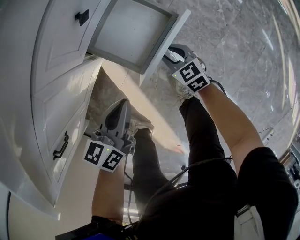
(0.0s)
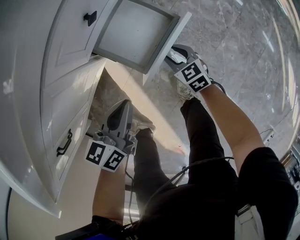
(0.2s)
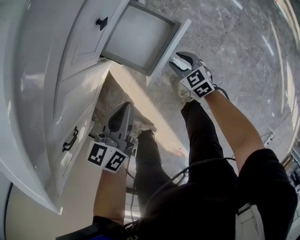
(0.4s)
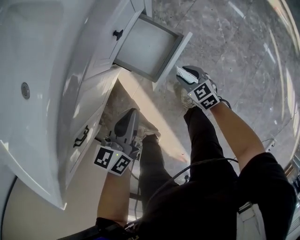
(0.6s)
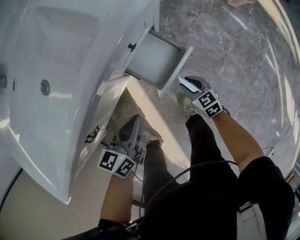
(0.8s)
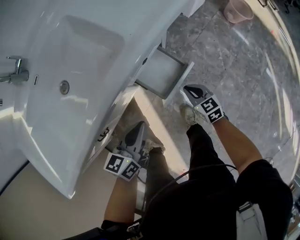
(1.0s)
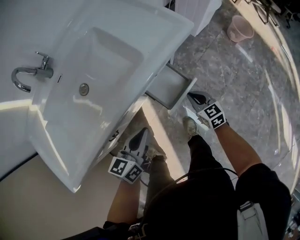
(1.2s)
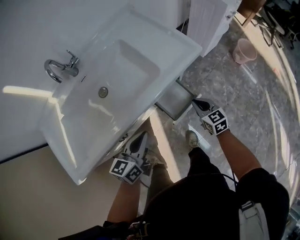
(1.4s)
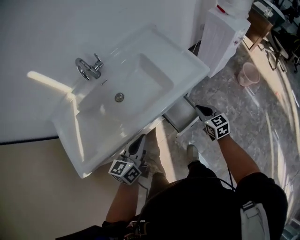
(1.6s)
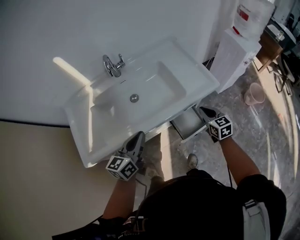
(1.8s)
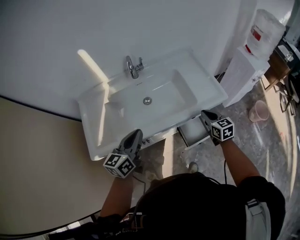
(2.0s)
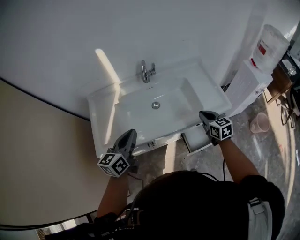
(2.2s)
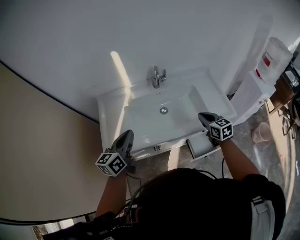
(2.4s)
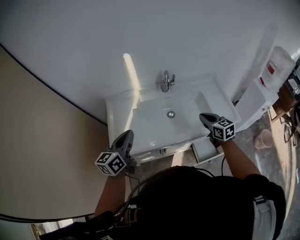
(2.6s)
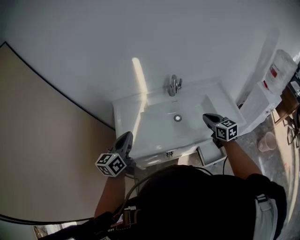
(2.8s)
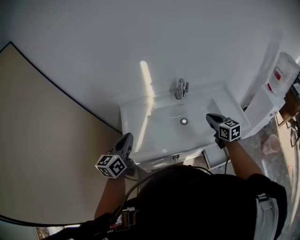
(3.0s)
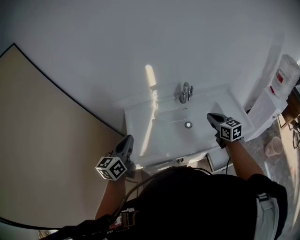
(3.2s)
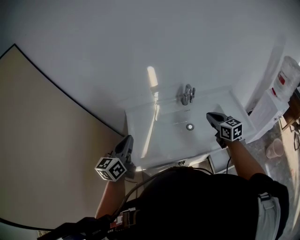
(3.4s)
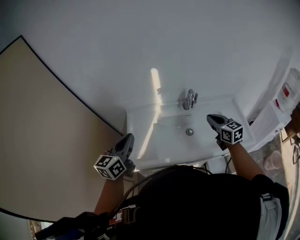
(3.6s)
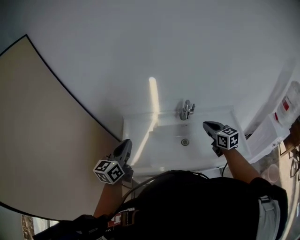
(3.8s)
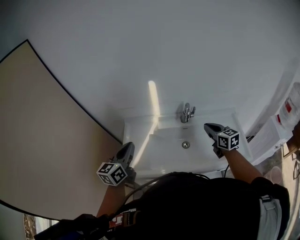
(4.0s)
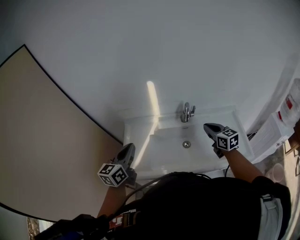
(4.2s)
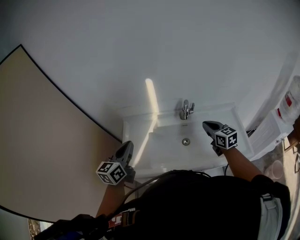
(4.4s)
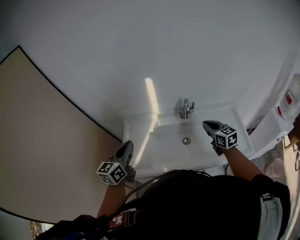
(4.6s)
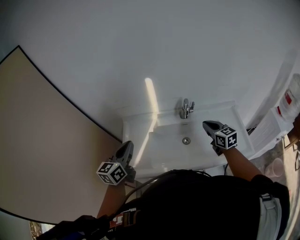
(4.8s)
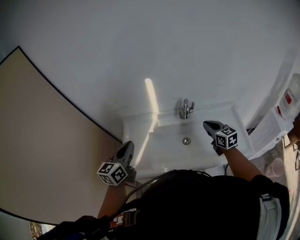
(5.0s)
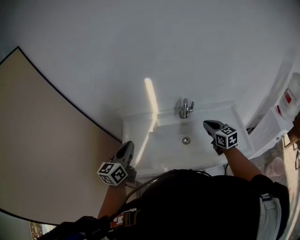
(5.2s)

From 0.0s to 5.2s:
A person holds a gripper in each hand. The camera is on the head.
From 0.0s to 1.8s: Both grippers move upward, some 60 cm. The right gripper closes its fingers, while the left gripper swivels about 40 degrees.
From 1.8s to 3.4s: The two grippers go some 40 cm to the left and upward. The right gripper turns by approximately 20 degrees. Meanwhile the left gripper swivels approximately 20 degrees.
From 3.4s to 5.2s: The left gripper travels to the right by some 5 cm. The right gripper shifts roughly 10 cm forward and to the right.

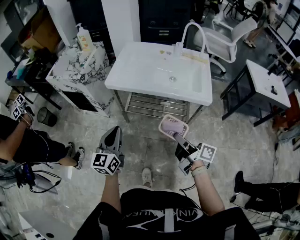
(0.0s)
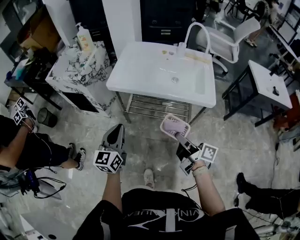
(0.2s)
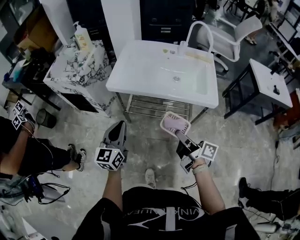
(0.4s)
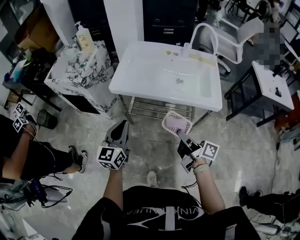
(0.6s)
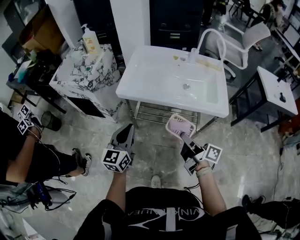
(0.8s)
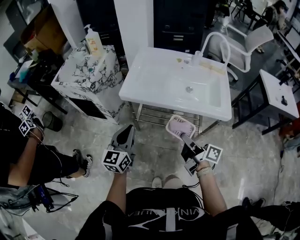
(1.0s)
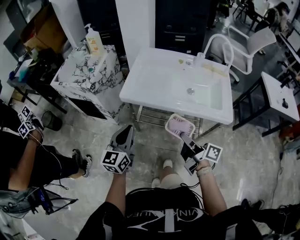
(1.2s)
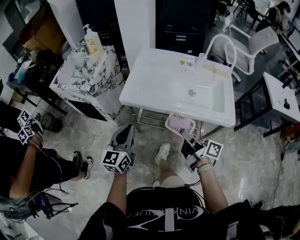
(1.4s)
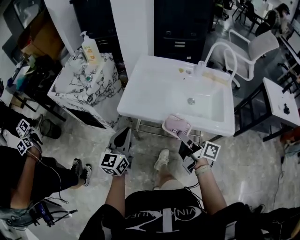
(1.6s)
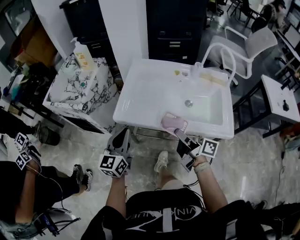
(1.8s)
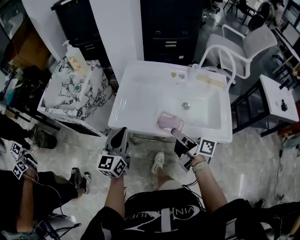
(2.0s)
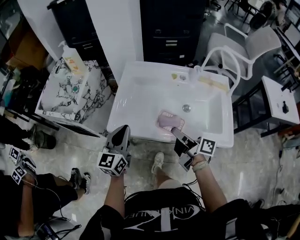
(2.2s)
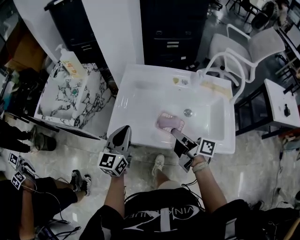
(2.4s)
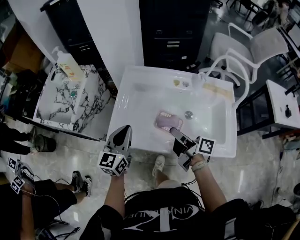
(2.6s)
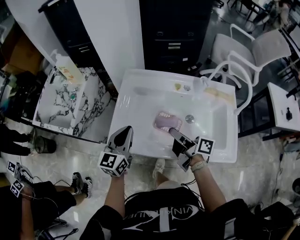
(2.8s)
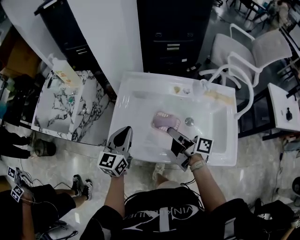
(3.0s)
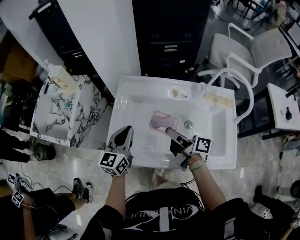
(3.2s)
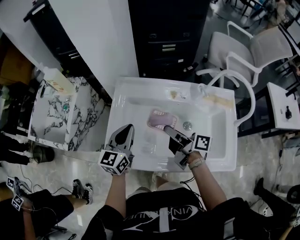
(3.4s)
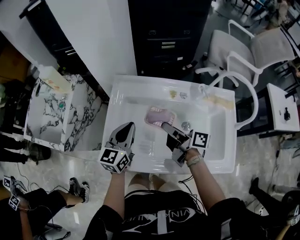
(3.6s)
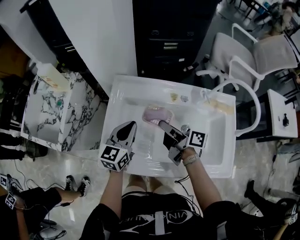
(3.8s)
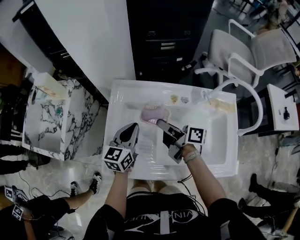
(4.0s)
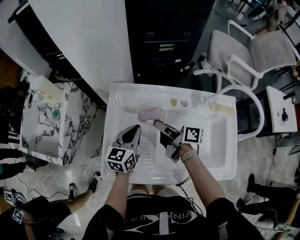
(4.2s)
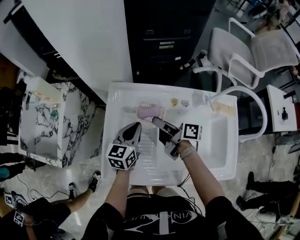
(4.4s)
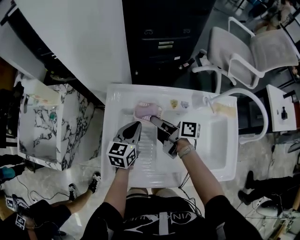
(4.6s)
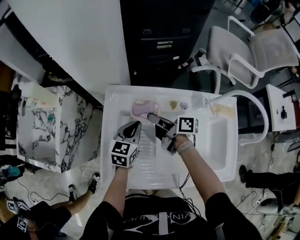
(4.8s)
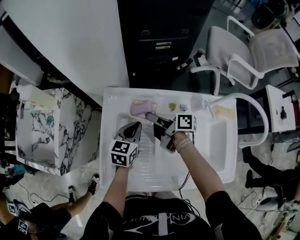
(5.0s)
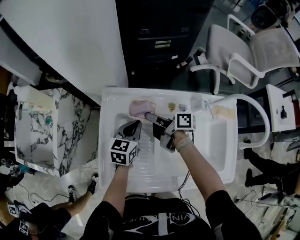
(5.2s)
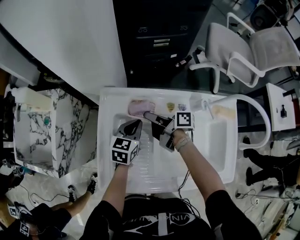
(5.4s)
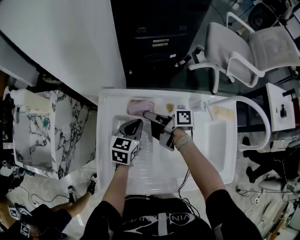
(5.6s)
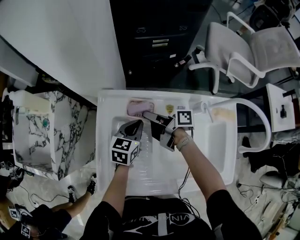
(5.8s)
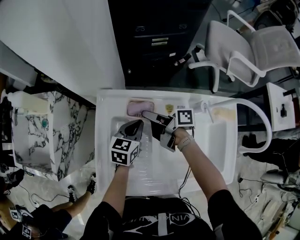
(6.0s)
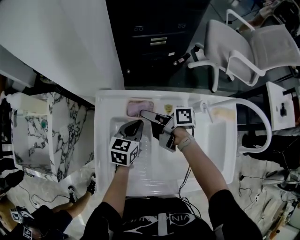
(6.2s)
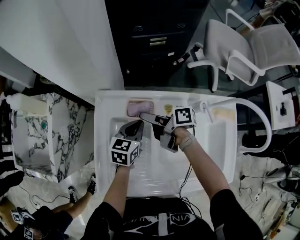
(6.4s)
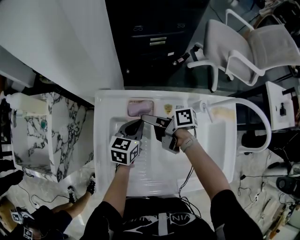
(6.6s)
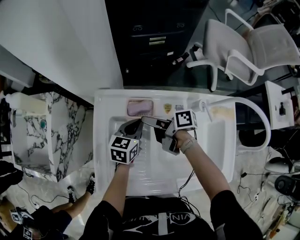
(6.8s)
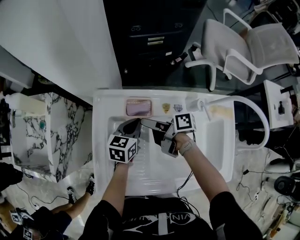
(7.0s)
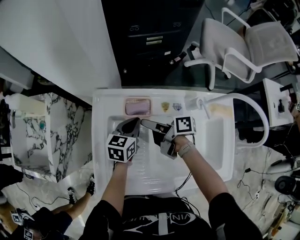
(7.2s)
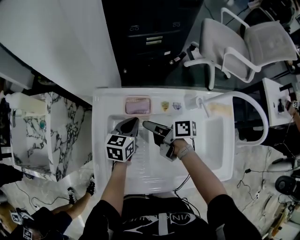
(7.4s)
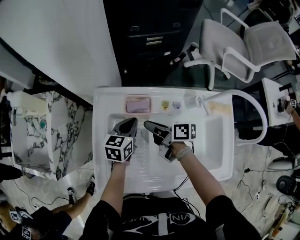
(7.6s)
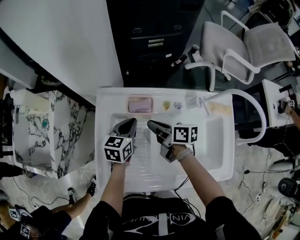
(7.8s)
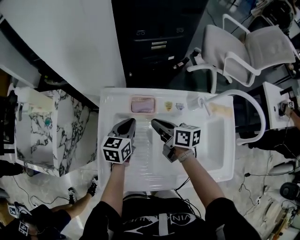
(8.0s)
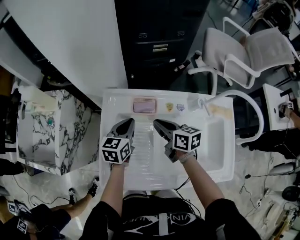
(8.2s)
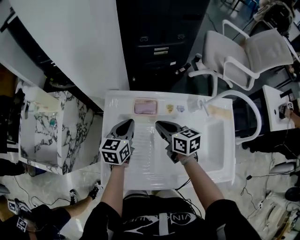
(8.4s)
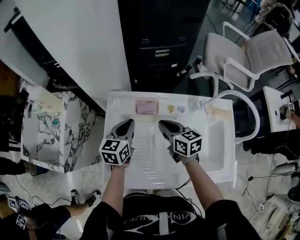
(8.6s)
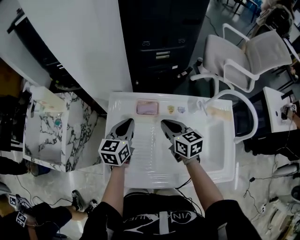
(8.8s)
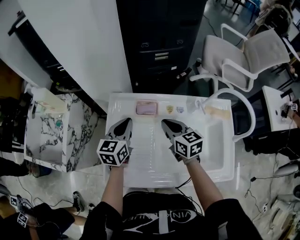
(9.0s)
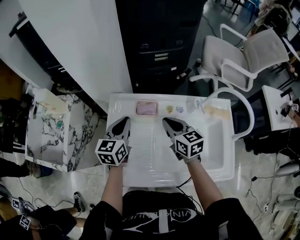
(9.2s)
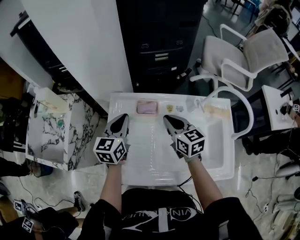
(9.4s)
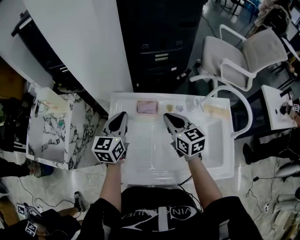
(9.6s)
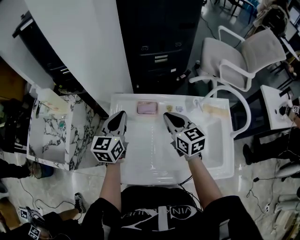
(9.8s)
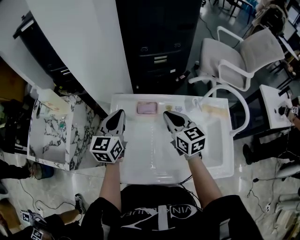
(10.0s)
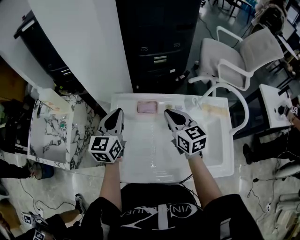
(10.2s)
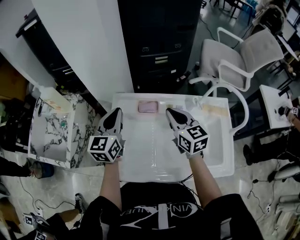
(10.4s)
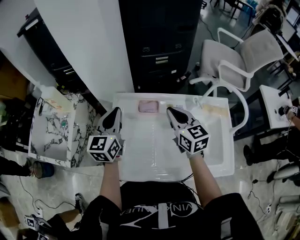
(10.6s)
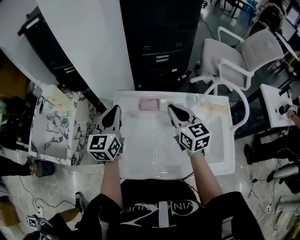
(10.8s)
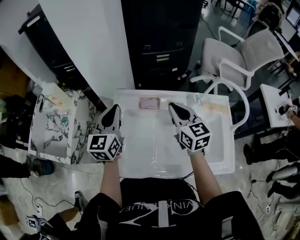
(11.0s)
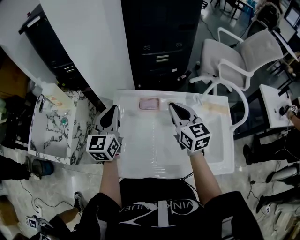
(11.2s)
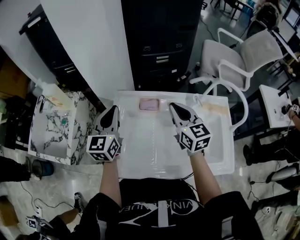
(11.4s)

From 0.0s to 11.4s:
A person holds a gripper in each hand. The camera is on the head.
From 0.0s to 1.4s: Both grippers travel together forward, approximately 15 cm.
From 1.4s to 2.8s: The grippers both shift forward by roughly 25 cm.
From 2.8s to 4.2s: The right gripper heads forward, covering roughly 15 cm. Meanwhile the left gripper goes roughly 20 cm forward, to the right and downward.
From 4.2s to 5.6s: The right gripper goes about 10 cm forward, and rotates approximately 20 degrees; the left gripper is displaced forward, to the right and downward by some 10 cm.
From 5.6s to 7.2s: The right gripper opens.
From 7.2s to 8.6s: The left gripper goes about 10 cm upward and to the left; the right gripper is displaced upward by approximately 5 cm, rotates around the line of its fingers by approximately 50 degrees, counterclockwise from behind, and closes up.
From 8.6s to 10.0s: The grippers both shift upward by roughly 10 cm.
From 10.0s to 11.4s: The left gripper shifts by about 5 cm.

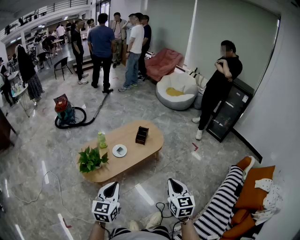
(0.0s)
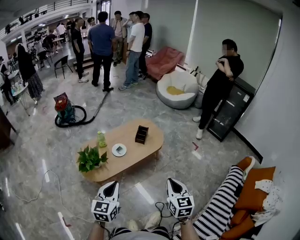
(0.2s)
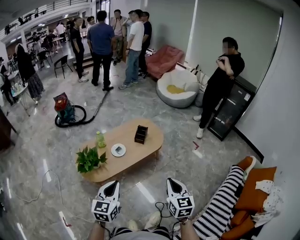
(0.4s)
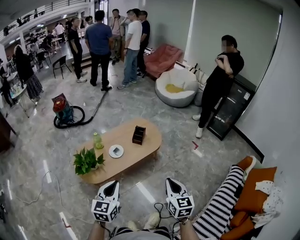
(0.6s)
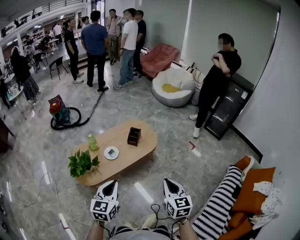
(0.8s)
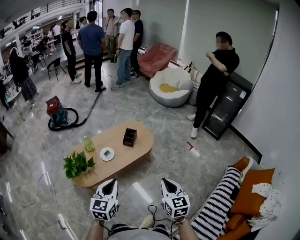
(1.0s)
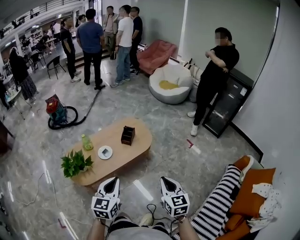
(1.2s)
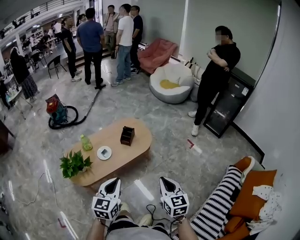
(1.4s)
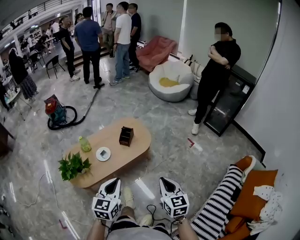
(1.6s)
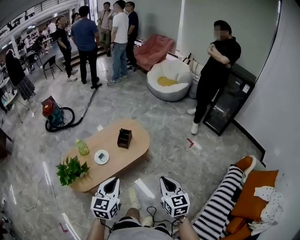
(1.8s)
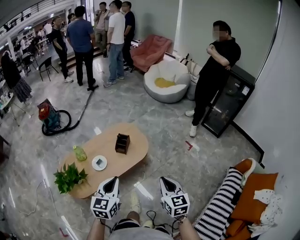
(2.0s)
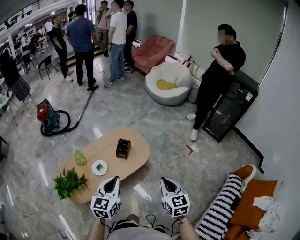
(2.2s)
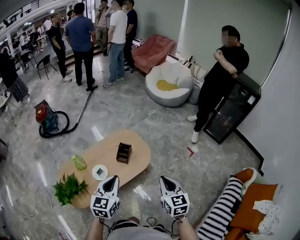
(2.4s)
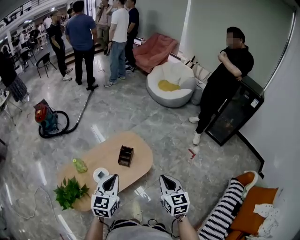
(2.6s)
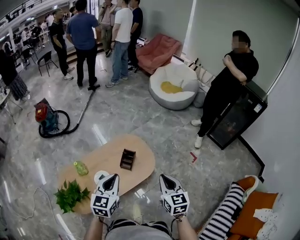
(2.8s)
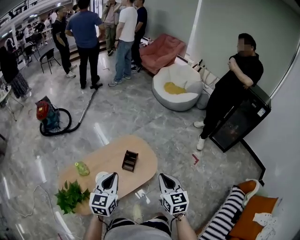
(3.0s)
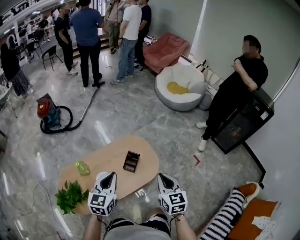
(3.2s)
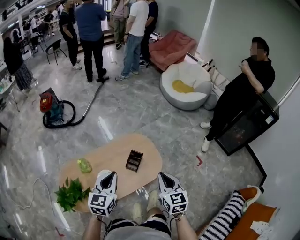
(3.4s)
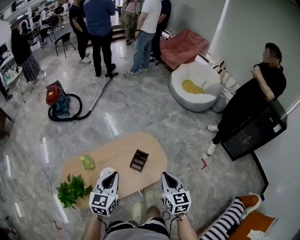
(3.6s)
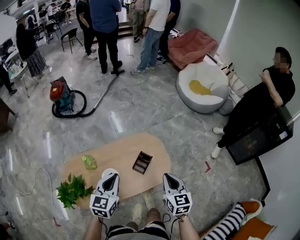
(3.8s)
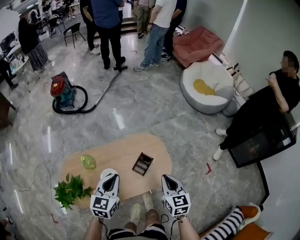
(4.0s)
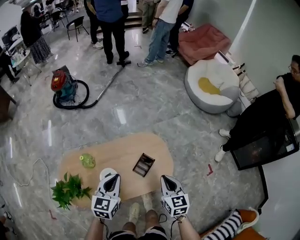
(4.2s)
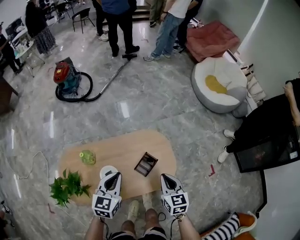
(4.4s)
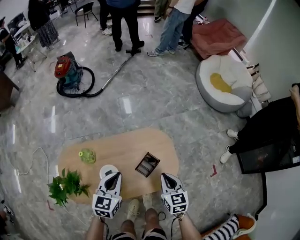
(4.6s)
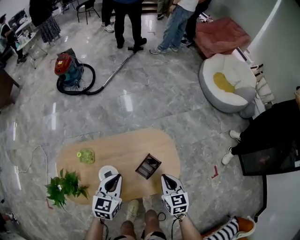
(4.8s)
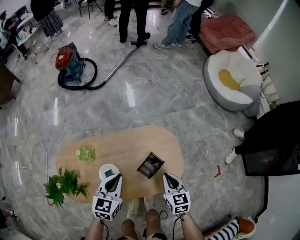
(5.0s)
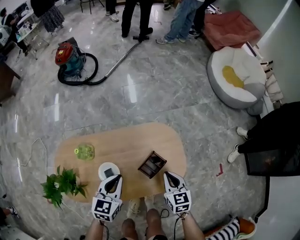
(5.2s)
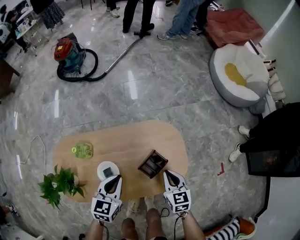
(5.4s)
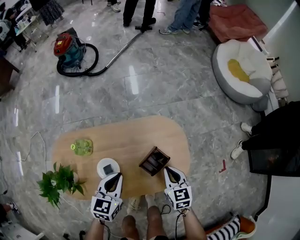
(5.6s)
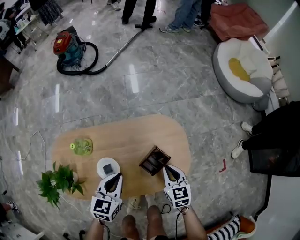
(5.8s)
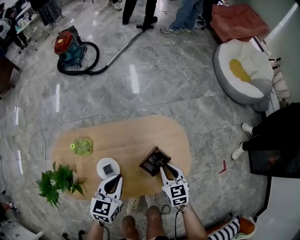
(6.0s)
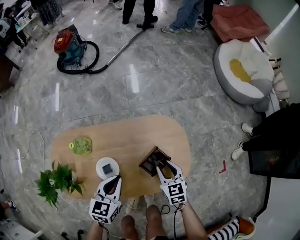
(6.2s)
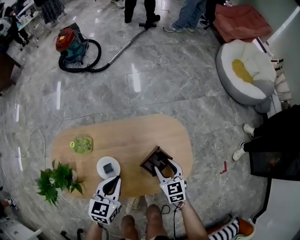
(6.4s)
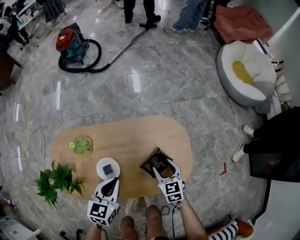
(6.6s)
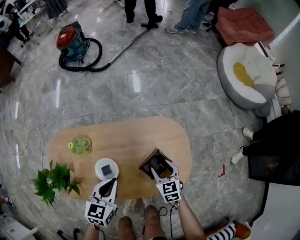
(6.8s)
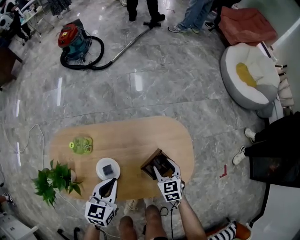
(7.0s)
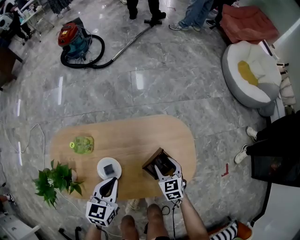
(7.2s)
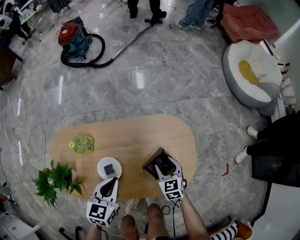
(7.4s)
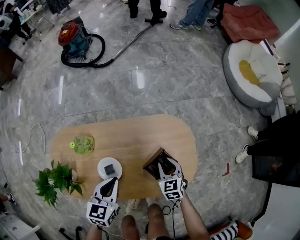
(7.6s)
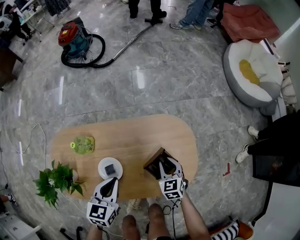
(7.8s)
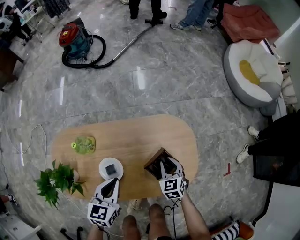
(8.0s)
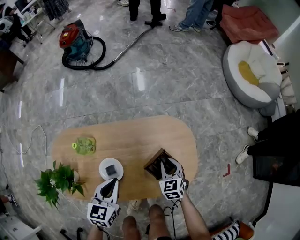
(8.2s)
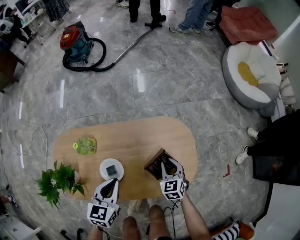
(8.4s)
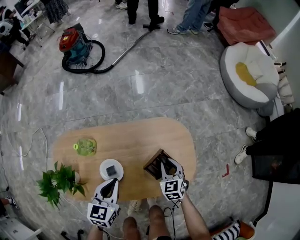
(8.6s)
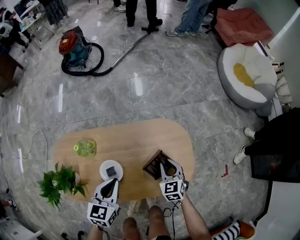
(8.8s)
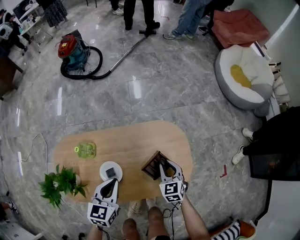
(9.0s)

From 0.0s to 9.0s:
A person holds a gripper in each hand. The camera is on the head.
From 0.0s to 1.6s: Both grippers move to the right and forward, about 20 cm.
From 1.6s to 3.0s: Both grippers travel together forward, some 30 cm.
From 3.0s to 4.4s: The left gripper shifts approximately 20 cm forward, downward and to the left, while the right gripper shifts some 25 cm forward and downward, and changes its angle by about 20 degrees.
From 4.4s to 6.0s: Both grippers move downward, approximately 15 cm.
From 6.0s to 7.6s: The right gripper goes about 10 cm downward, and opens up.
From 7.6s to 9.0s: The right gripper heads upward, covering some 5 cm.
